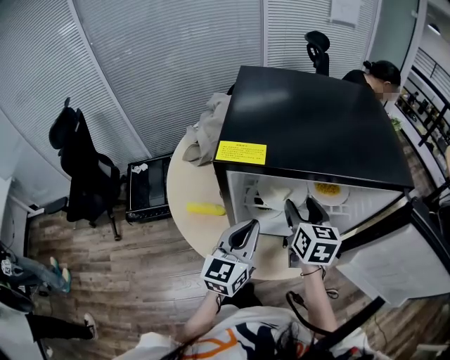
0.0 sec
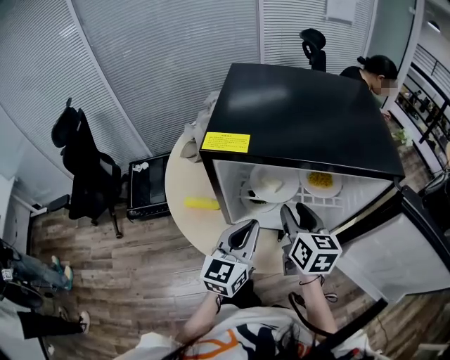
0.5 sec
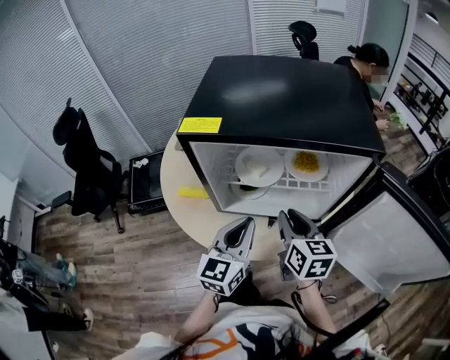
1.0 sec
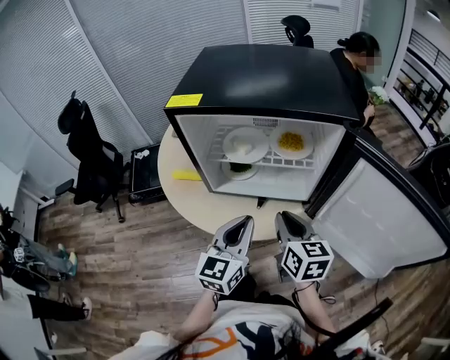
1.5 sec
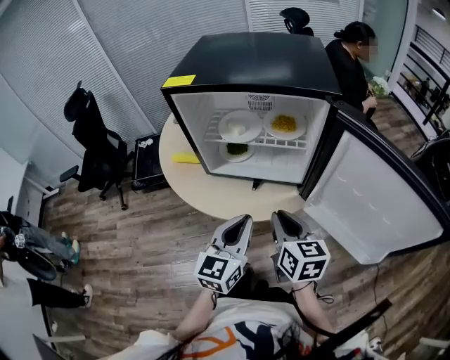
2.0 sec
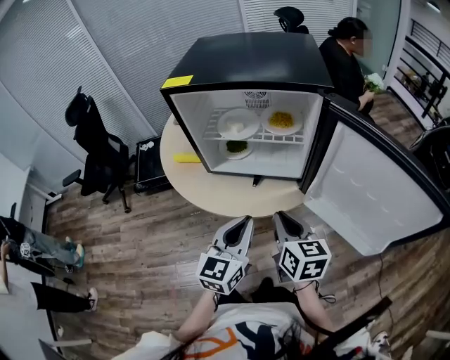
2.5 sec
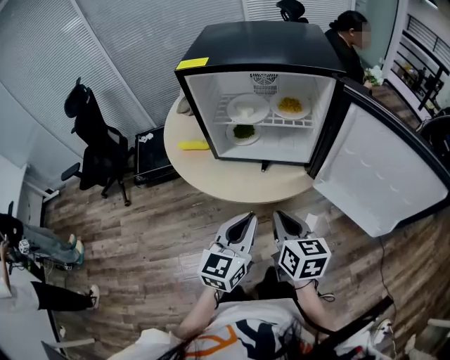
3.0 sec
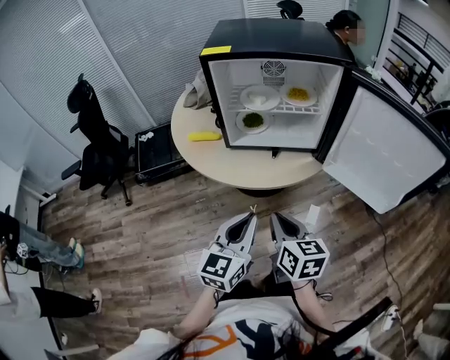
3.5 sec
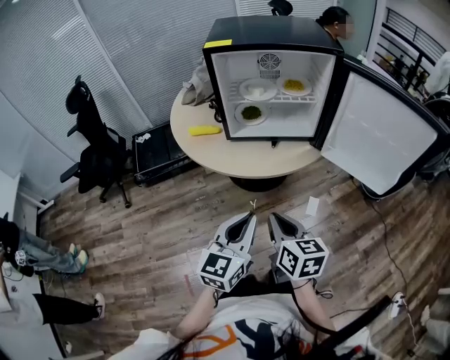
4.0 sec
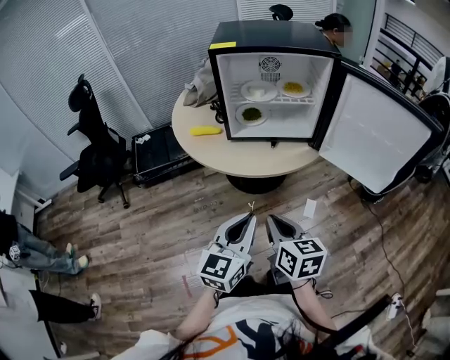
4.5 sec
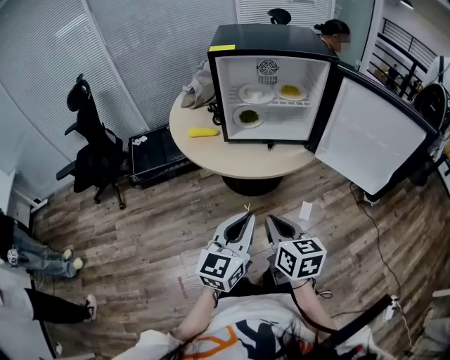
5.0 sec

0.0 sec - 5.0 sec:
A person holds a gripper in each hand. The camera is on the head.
0.0 sec - 2.5 sec: The left gripper moves backward and to the right, some 25 cm; the right gripper moves backward, about 25 cm, and closes its fingers.
2.5 sec - 5.0 sec: Both grippers move backward and to the left, some 25 cm.

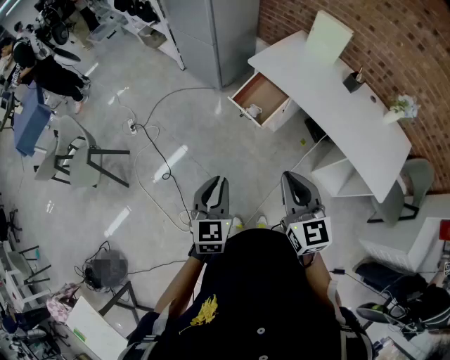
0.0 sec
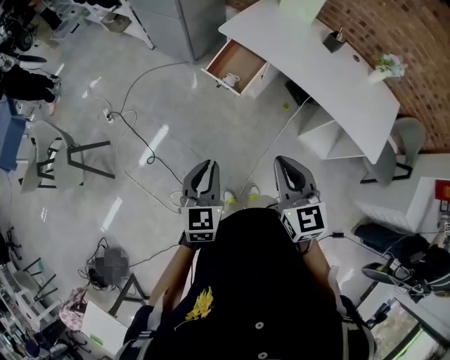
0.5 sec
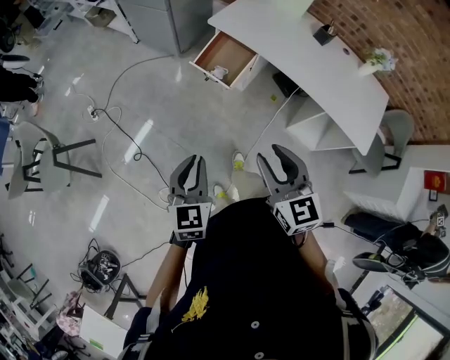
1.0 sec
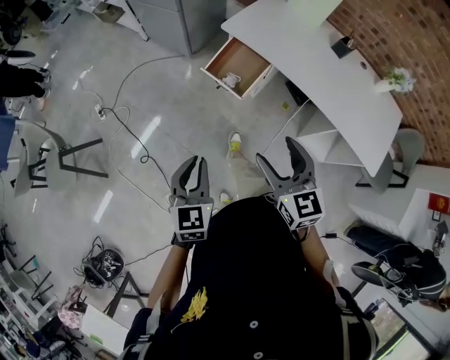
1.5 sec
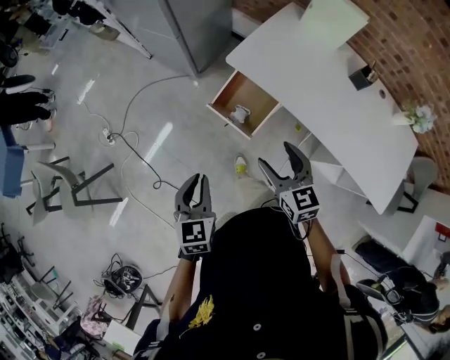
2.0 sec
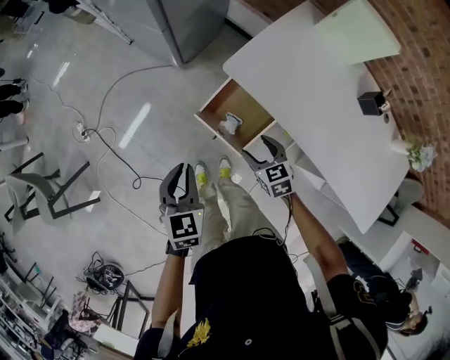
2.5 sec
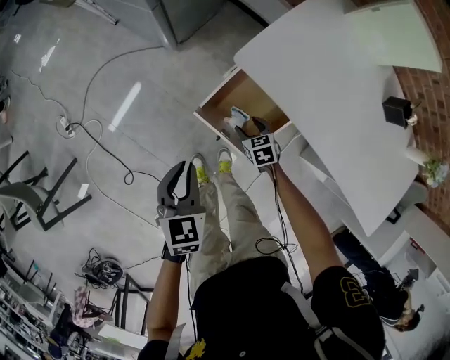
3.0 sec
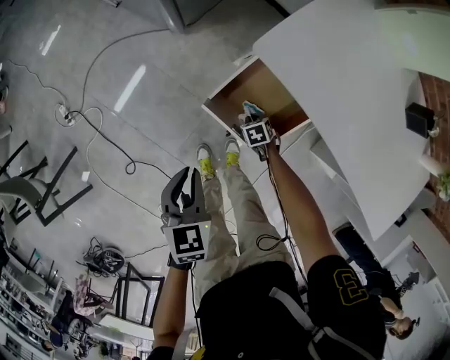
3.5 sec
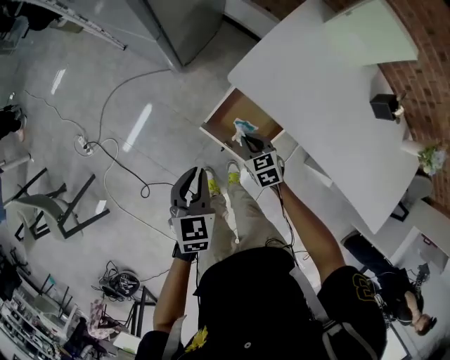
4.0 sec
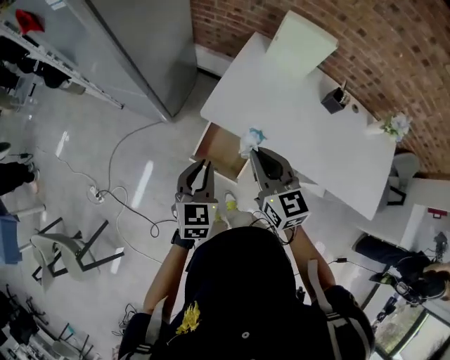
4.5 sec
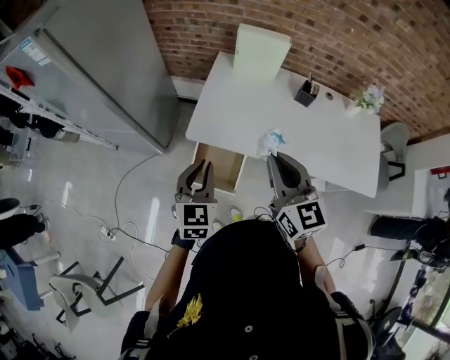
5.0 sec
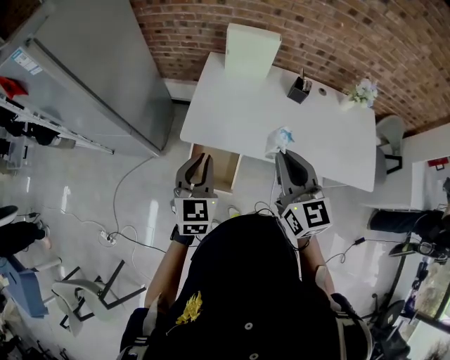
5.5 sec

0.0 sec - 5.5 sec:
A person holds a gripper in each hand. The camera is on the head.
0.0 sec - 2.0 sec: The left gripper travels forward by about 30 cm. The right gripper heads forward and downward, covering approximately 40 cm, and opens up.
2.0 sec - 3.5 sec: The right gripper shifts some 60 cm downward, tilts its fingers approximately 50 degrees downward, and closes its fingers, while the left gripper shifts about 25 cm downward.
3.5 sec - 5.5 sec: The left gripper goes about 35 cm upward, and turns by some 50 degrees. The right gripper goes about 80 cm upward, and tilts its fingers some 70 degrees upward.

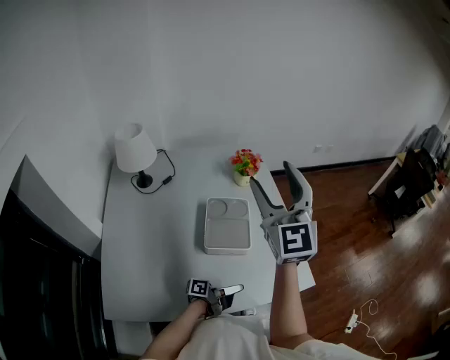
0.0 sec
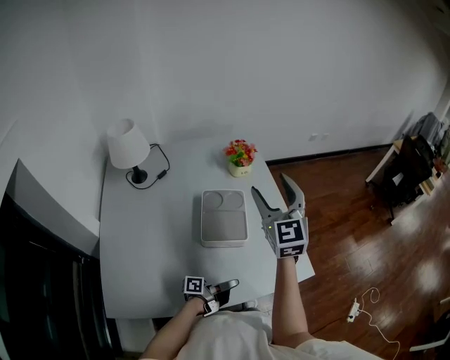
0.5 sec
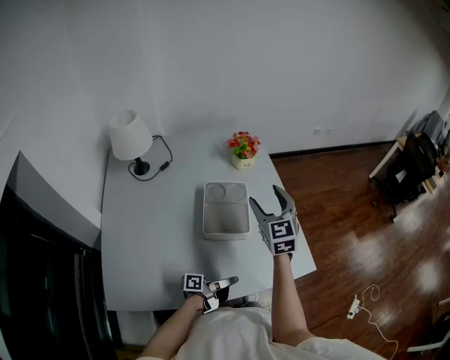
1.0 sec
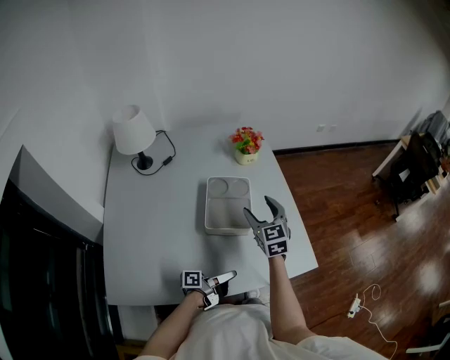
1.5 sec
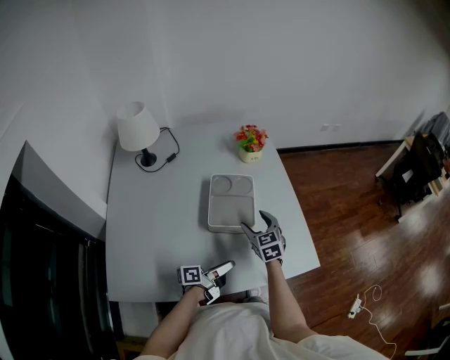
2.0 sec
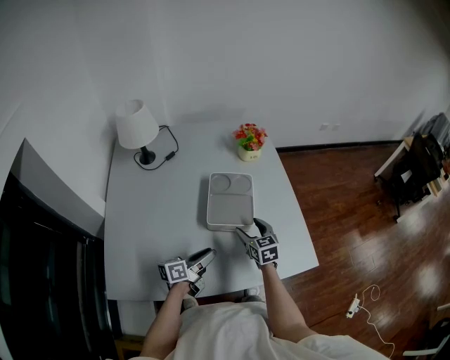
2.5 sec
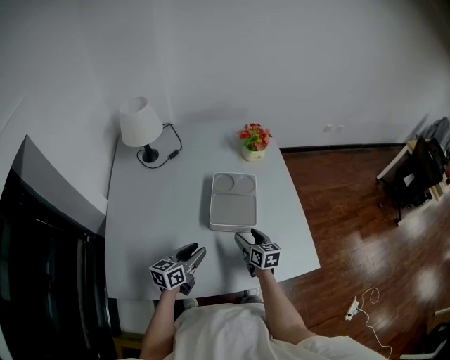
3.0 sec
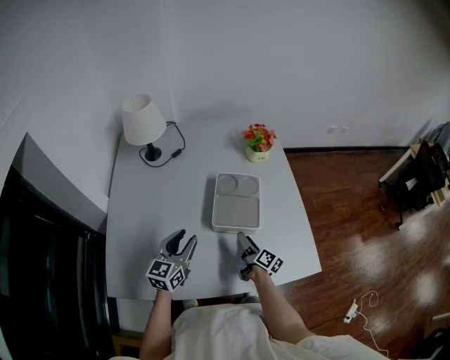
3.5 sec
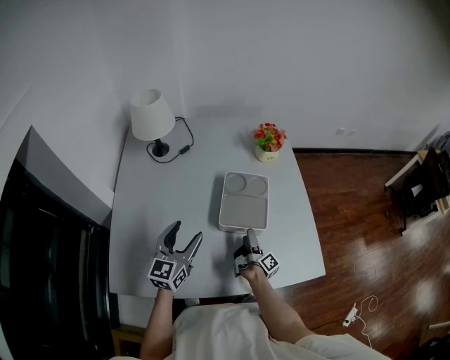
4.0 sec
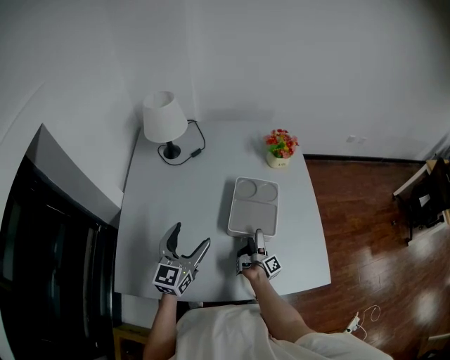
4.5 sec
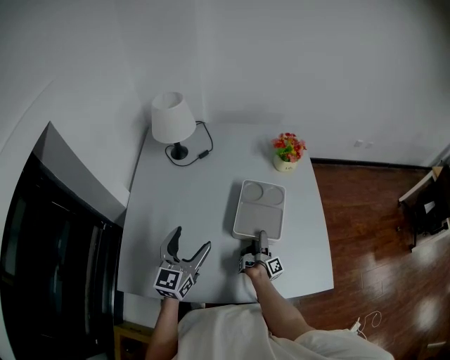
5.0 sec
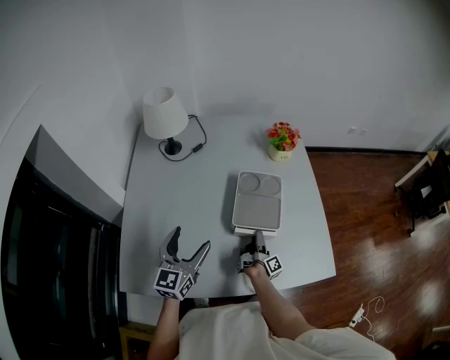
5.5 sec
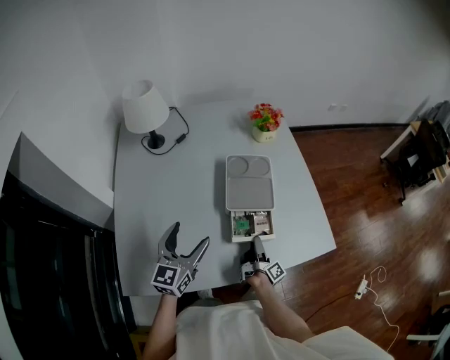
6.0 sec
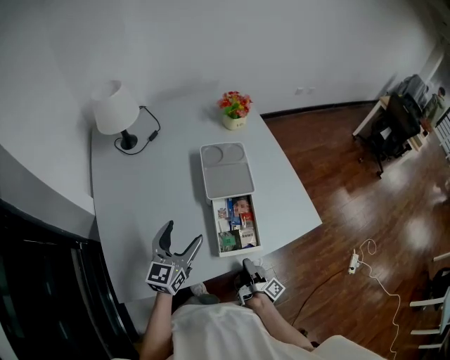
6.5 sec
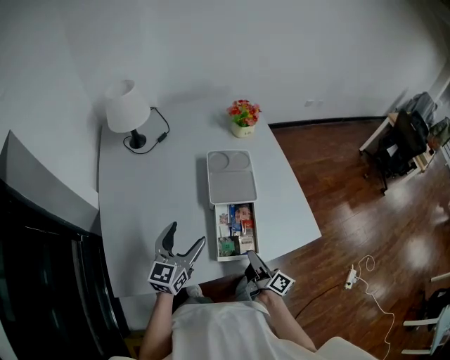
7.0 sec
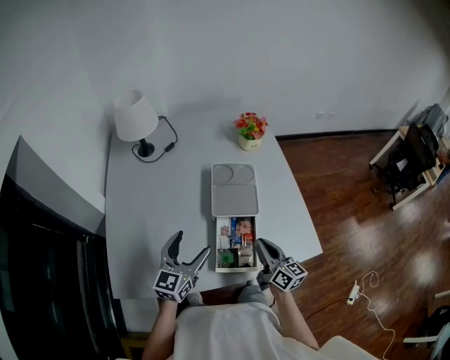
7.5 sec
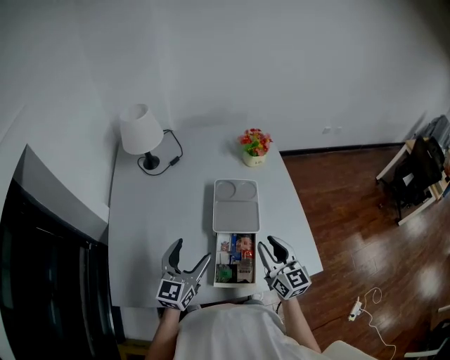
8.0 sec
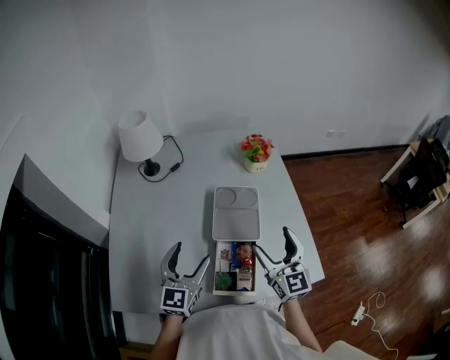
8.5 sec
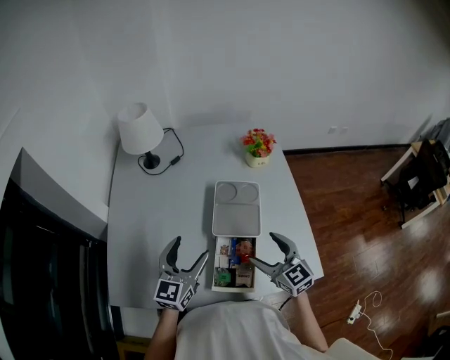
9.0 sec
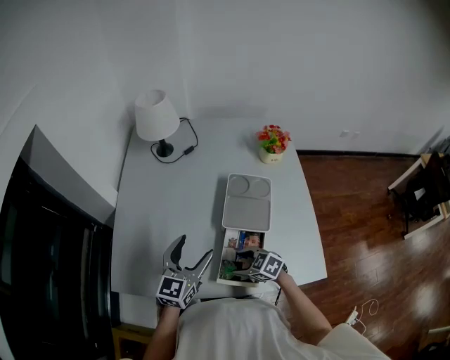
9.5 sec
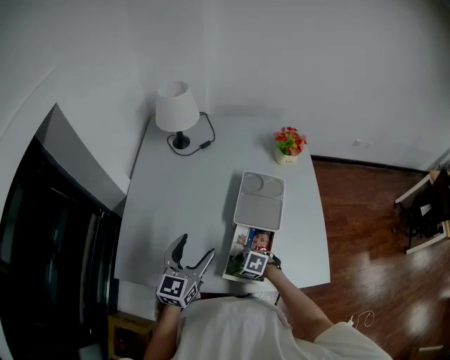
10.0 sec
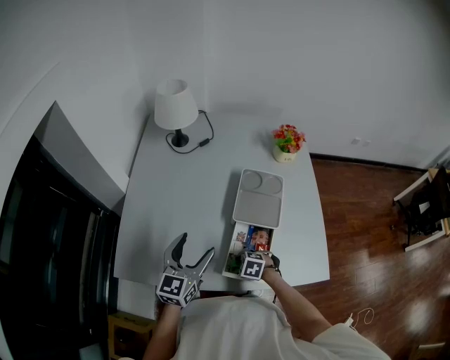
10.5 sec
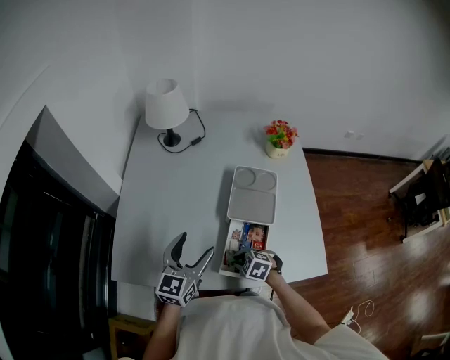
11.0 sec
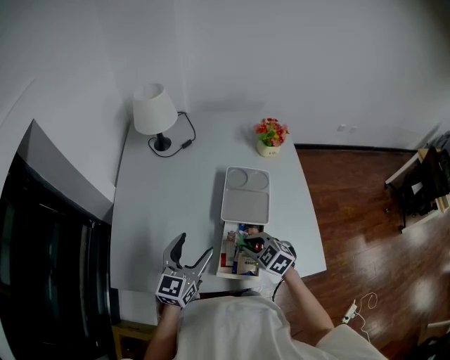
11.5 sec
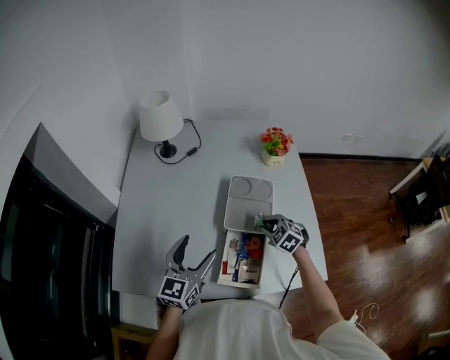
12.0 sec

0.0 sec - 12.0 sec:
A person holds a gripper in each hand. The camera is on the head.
0.0 sec - 2.0 sec: The right gripper goes about 40 cm downward, and tilts its fingers roughly 40 degrees downward. The left gripper moves to the left, about 5 cm.
2.0 sec - 4.0 sec: The right gripper is displaced downward by some 10 cm, and twists roughly 100 degrees clockwise, seen from behind. The left gripper heads to the left and upward, covering some 25 cm, twists some 70 degrees clockwise, seen from behind, and opens.
4.0 sec - 6.0 sec: The right gripper heads backward, covering some 10 cm, and closes.
6.0 sec - 8.0 sec: The right gripper goes about 25 cm upward, and twists about 90 degrees counterclockwise, seen from behind. The left gripper moves to the right, approximately 5 cm.
8.0 sec - 10.0 sec: The left gripper moves some 5 cm; the right gripper goes some 25 cm downward, angles its fingers downward, by roughly 60 degrees, and opens up.
10.0 sec - 12.0 sec: The right gripper changes place by some 25 cm, swivels approximately 30 degrees, and closes up.

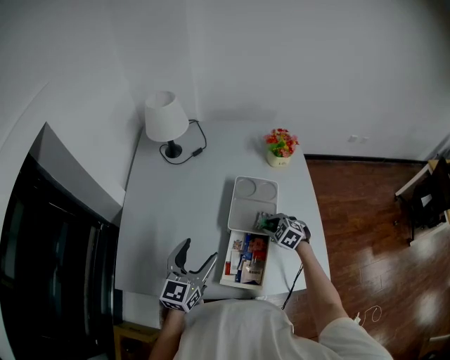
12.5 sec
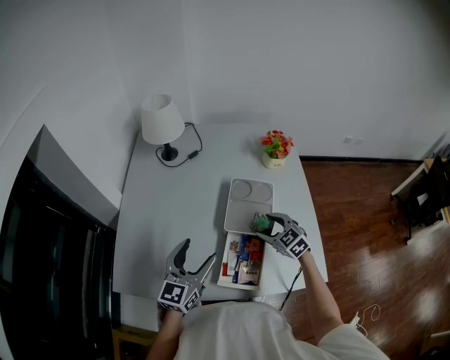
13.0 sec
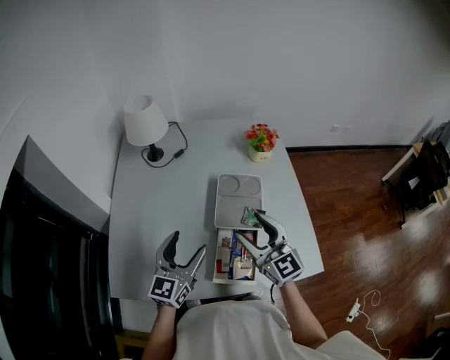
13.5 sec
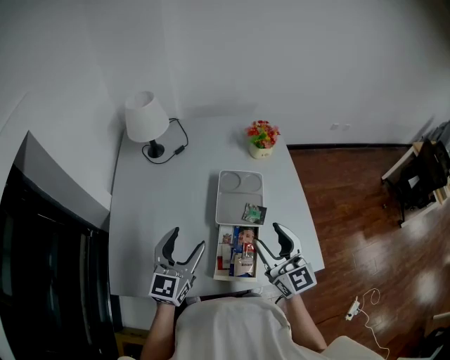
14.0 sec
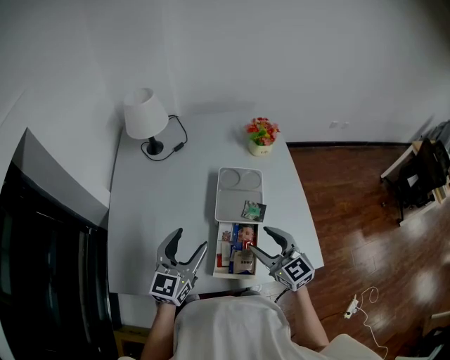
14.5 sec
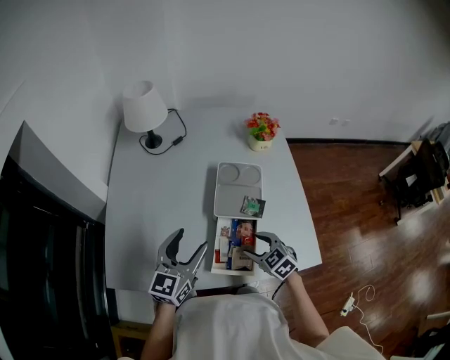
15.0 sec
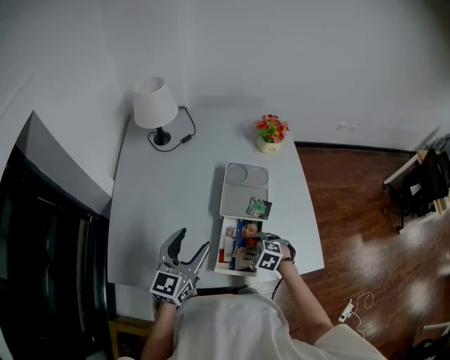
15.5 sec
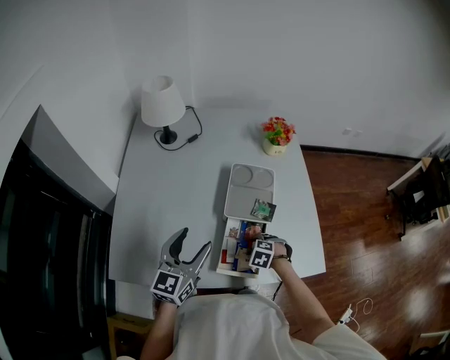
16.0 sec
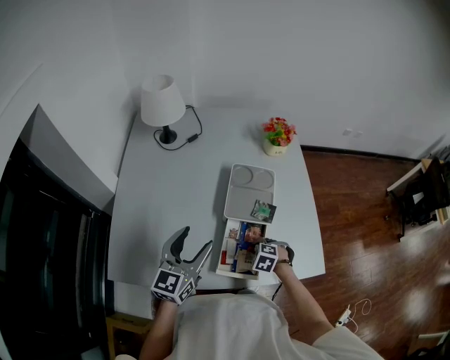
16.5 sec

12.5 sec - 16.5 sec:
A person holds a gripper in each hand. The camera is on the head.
12.5 sec - 14.5 sec: The right gripper is displaced upward and backward by some 20 cm, and points its fingers approximately 40 degrees further upward.
14.5 sec - 16.5 sec: The right gripper goes approximately 25 cm downward, angles its fingers downward, by about 60 degrees, and closes its fingers.
